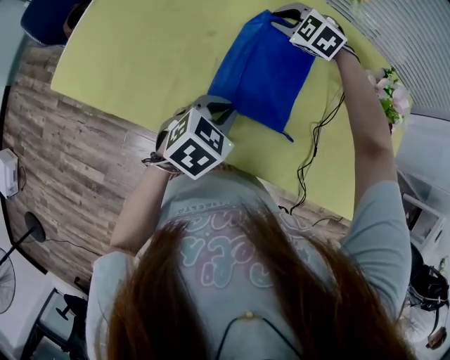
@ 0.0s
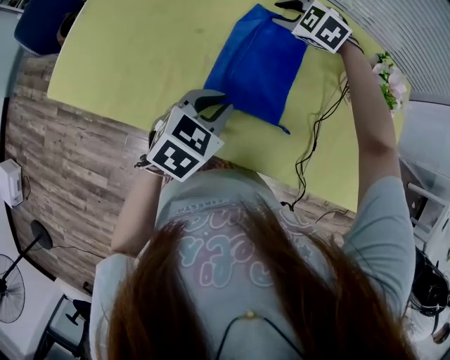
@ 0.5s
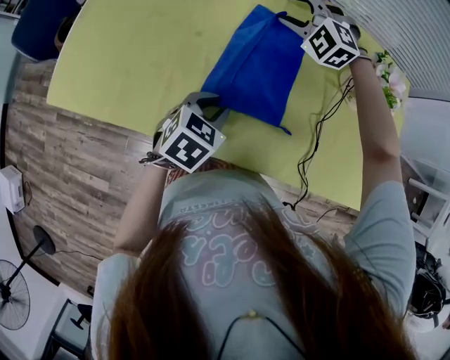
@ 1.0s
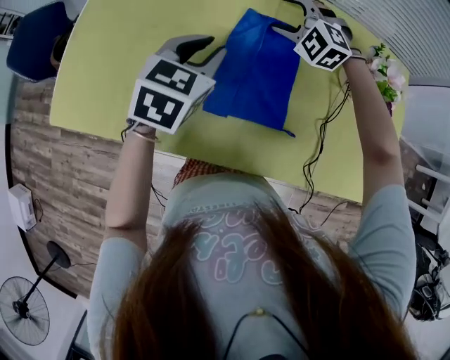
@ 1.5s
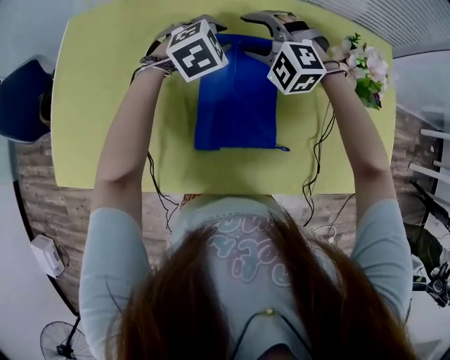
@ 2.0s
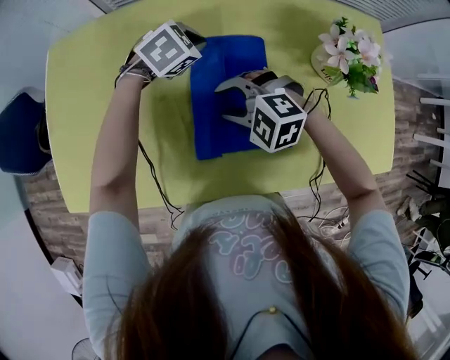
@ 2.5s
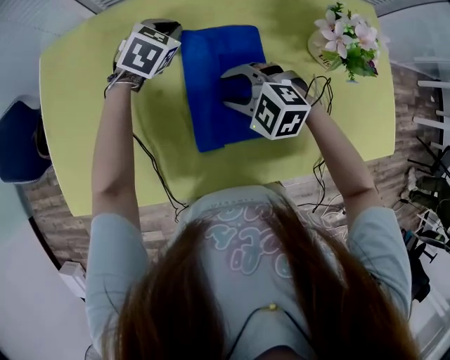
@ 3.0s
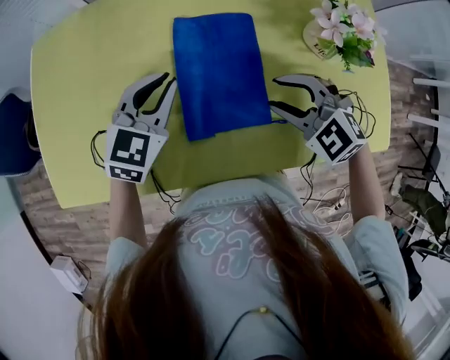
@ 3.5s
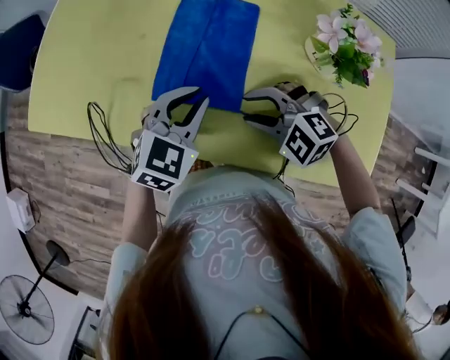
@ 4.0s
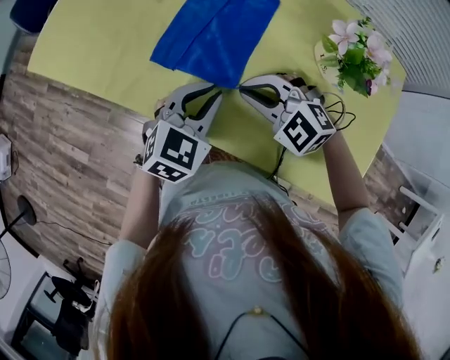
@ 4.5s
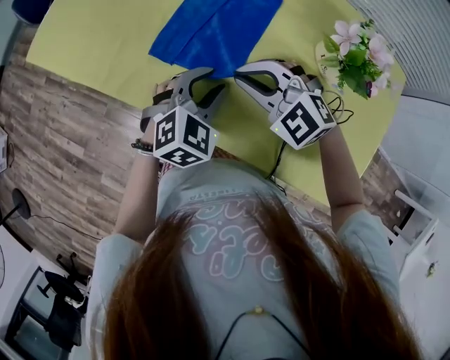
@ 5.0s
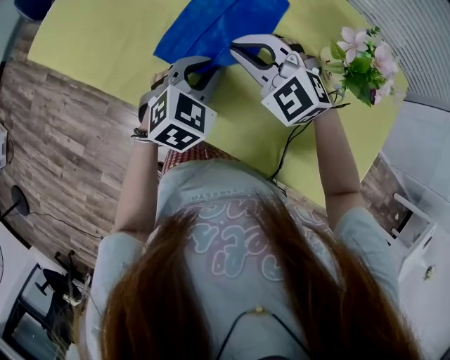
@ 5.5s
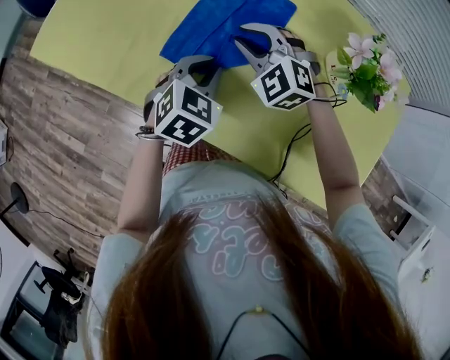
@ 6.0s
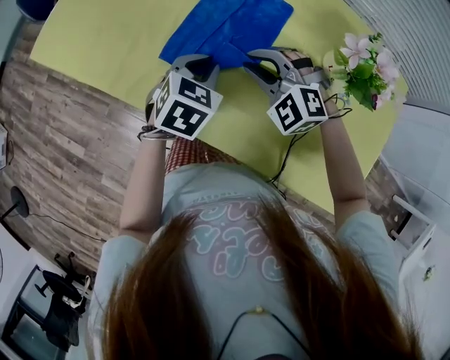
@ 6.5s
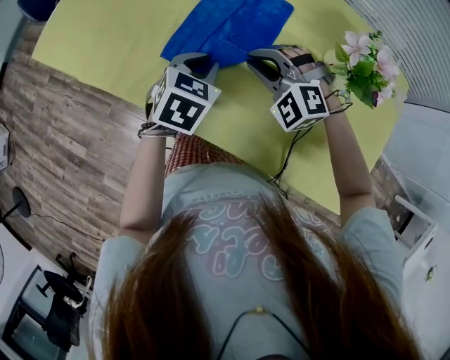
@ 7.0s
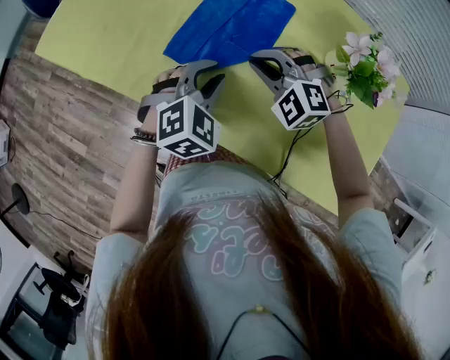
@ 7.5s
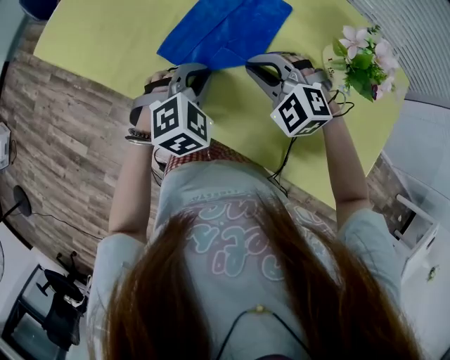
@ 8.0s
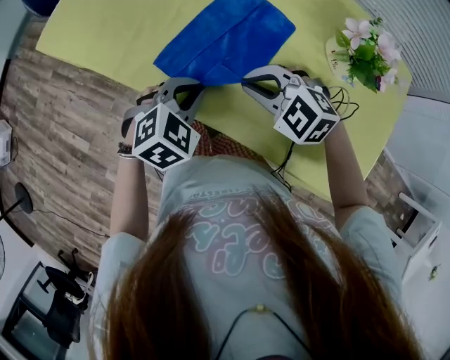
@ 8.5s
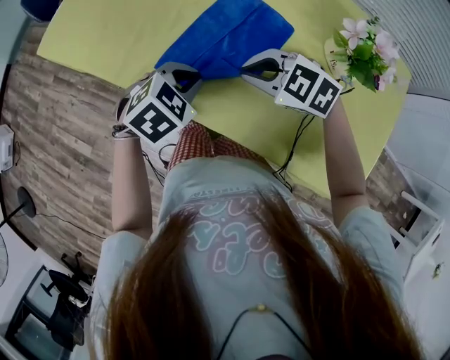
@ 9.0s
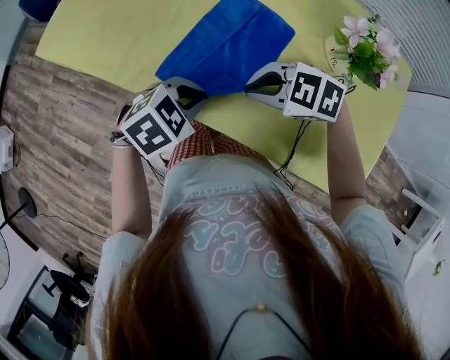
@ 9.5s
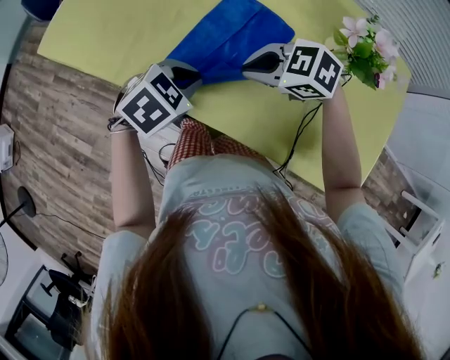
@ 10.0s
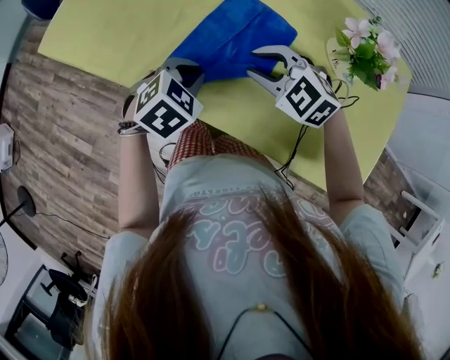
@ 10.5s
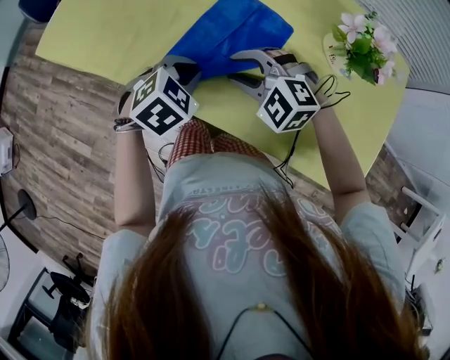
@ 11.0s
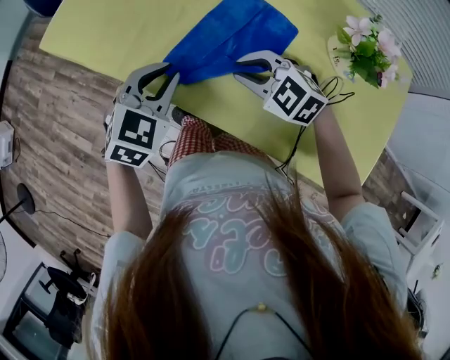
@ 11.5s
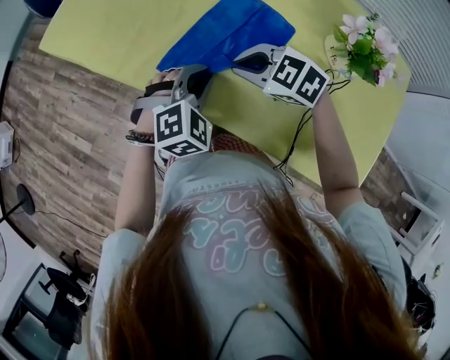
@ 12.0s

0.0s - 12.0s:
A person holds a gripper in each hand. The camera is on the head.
0.0s - 2.0s: The right gripper goes some 5 cm to the right, rotates some 20 degrees, and opens; the left gripper goes some 25 cm forward, rolls clockwise, seen from behind, by approximately 40 degrees, and opens its fingers.
2.0s - 4.0s: The left gripper changes place by about 25 cm, turns by roughly 40 degrees, and closes; the right gripper moves up and down over some 5 cm, changing direction 2 times, rotates some 30 degrees, and closes up.
4.0s - 6.0s: The left gripper heads downward, covering approximately 5 cm, and swivels roughly 20 degrees. The right gripper moves forward, about 15 cm, and swivels about 20 degrees.
6.0s - 8.0s: The left gripper swivels some 20 degrees, while the right gripper shifts about 10 cm backward.
8.0s - 10.0s: The right gripper turns by approximately 40 degrees. Meanwhile the left gripper turns by approximately 30 degrees.
10.0s - 12.0s: The left gripper turns by some 30 degrees; the right gripper opens, then closes once more.

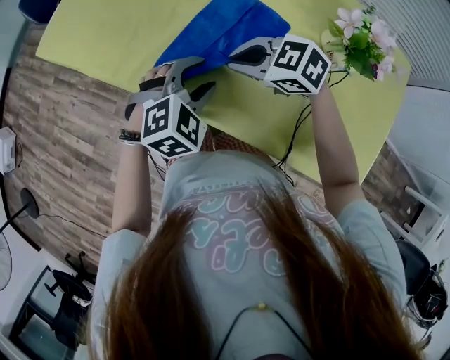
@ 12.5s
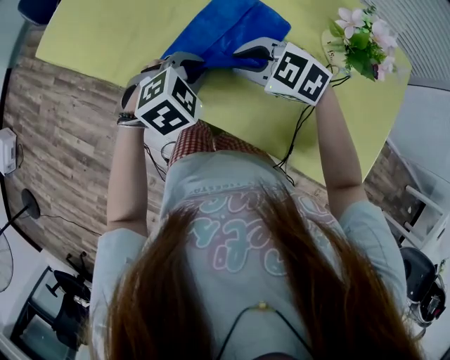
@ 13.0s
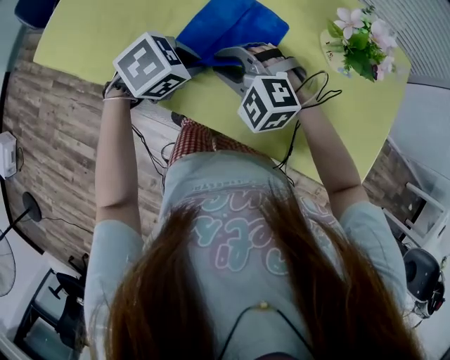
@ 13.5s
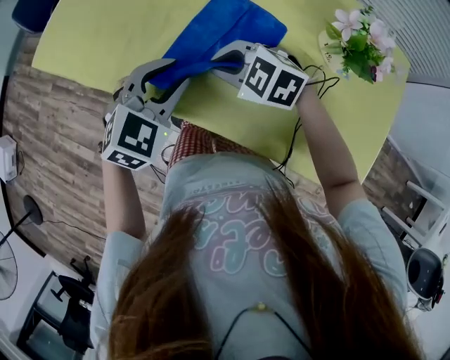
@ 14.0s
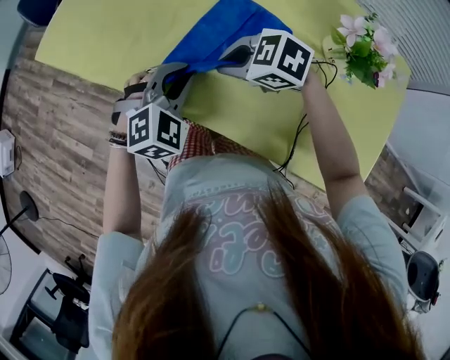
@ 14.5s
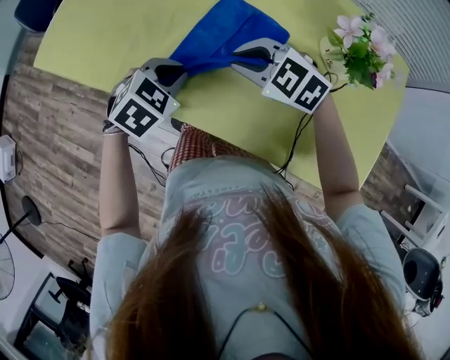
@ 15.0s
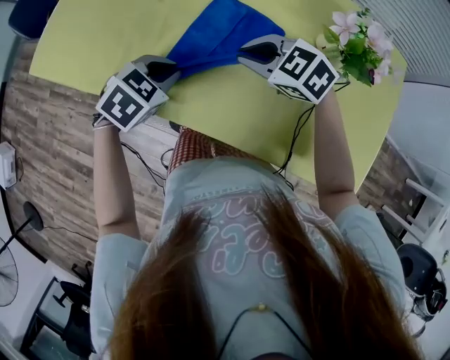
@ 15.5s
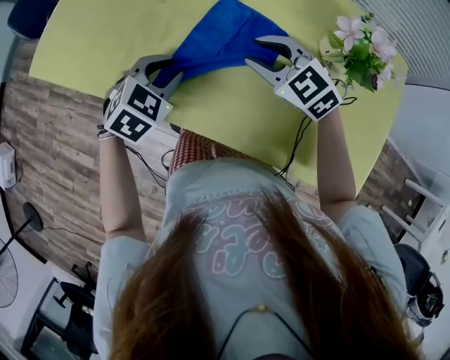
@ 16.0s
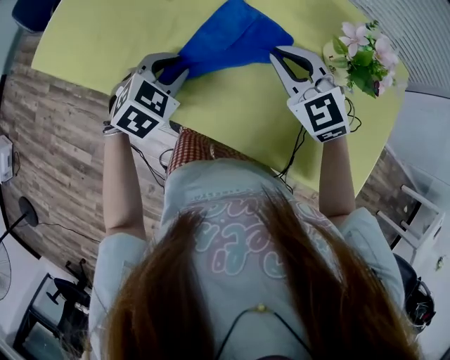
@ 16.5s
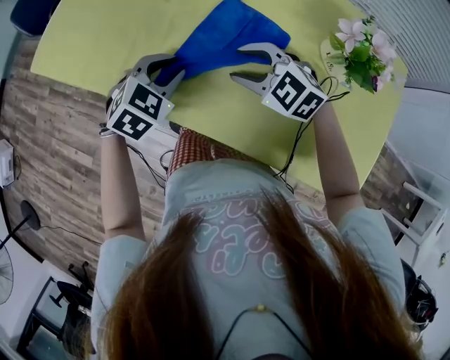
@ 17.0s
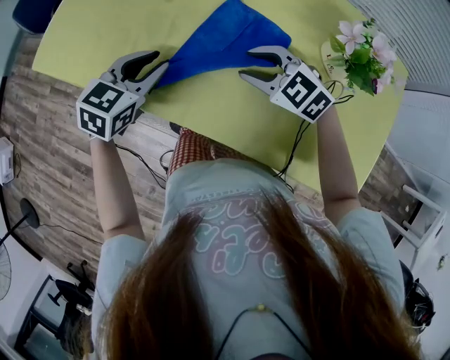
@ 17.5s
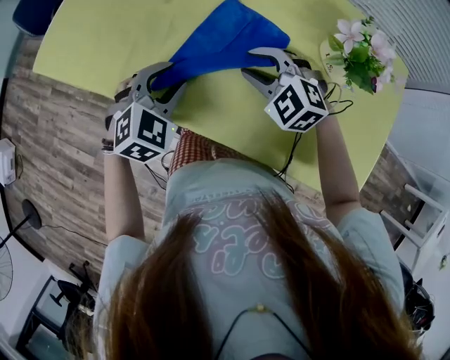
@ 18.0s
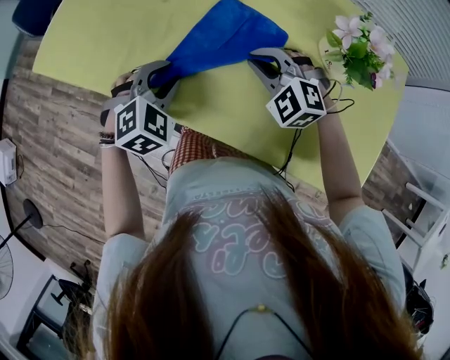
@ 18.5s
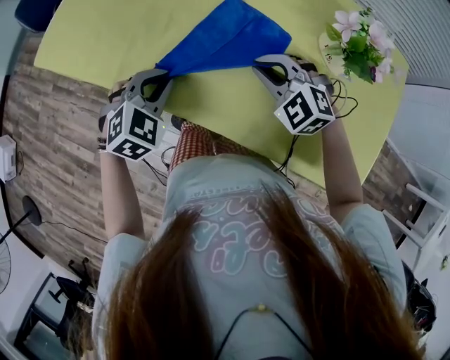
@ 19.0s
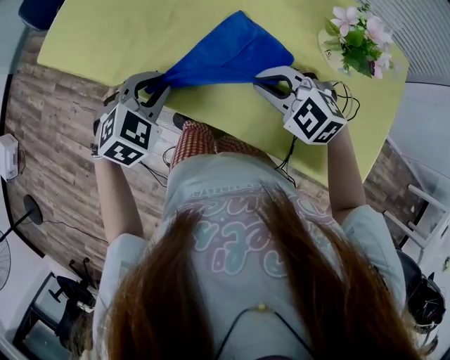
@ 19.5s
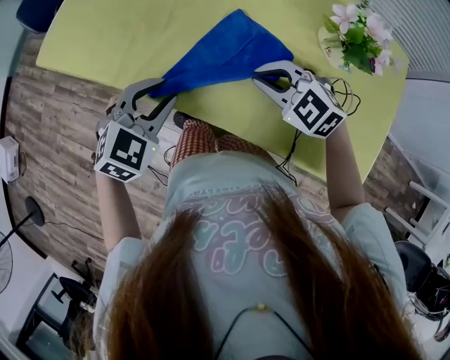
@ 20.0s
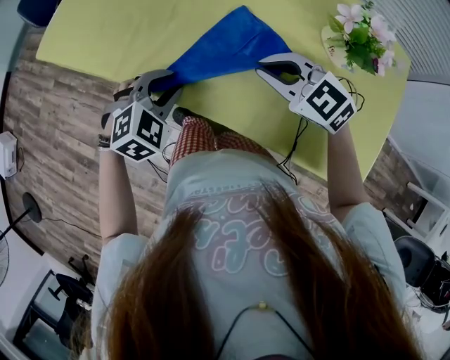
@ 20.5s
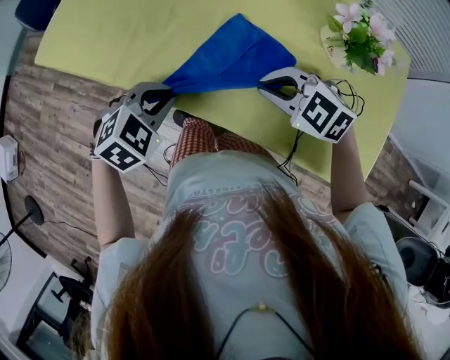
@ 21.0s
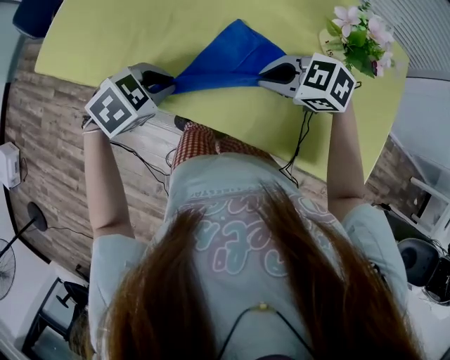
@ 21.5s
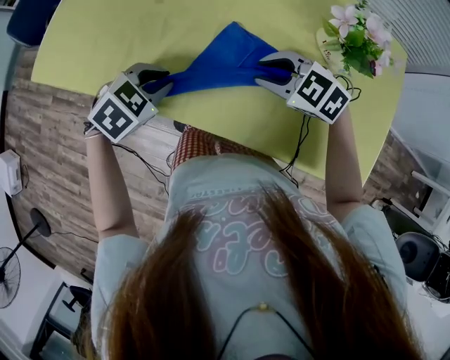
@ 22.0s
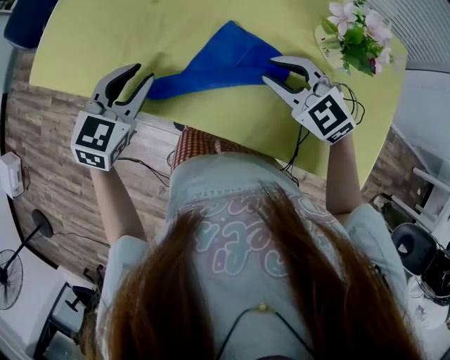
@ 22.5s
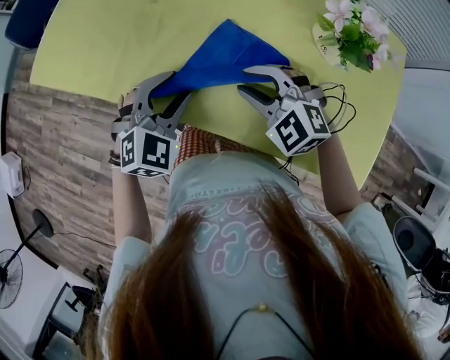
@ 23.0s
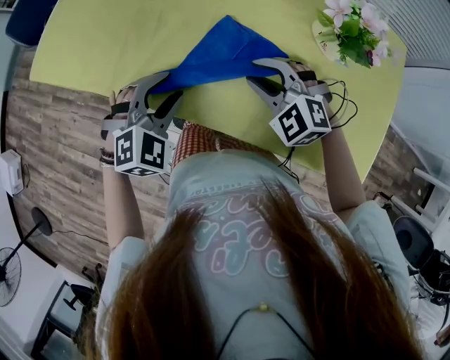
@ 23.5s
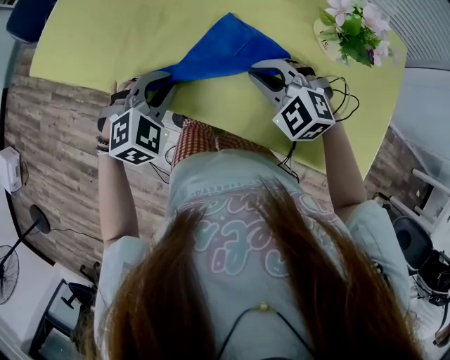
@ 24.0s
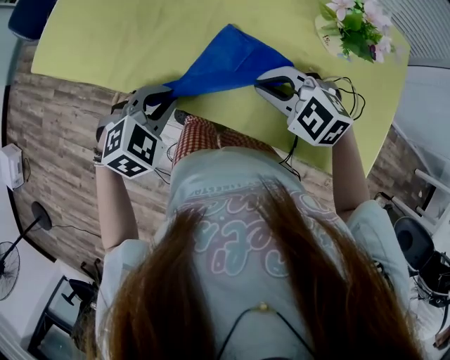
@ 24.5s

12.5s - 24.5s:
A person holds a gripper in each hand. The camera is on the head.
12.5s - 14.5s: The left gripper ends up about 5 cm from where it was, and closes up.
14.5s - 16.5s: The left gripper turns by some 20 degrees; the right gripper ends up about 15 cm from where it was, swivels some 50 degrees, and opens and closes again.
16.5s - 18.5s: The right gripper moves downward, approximately 5 cm, rotates some 30 degrees, and opens, then closes once more.
18.5s - 20.5s: Both grippers move backward, about 5 cm. The right gripper rotates some 30 degrees.
20.5s - 22.5s: The left gripper moves some 10 cm, and changes its angle by roughly 30 degrees.
22.5s - 24.5s: The left gripper heads backward and downward, covering about 10 cm, and swivels approximately 30 degrees. The right gripper shifts some 5 cm backward.

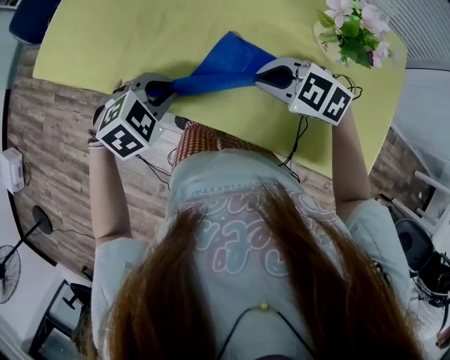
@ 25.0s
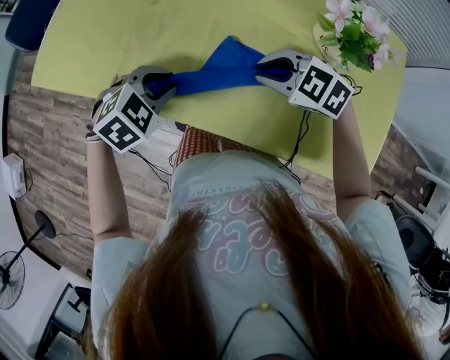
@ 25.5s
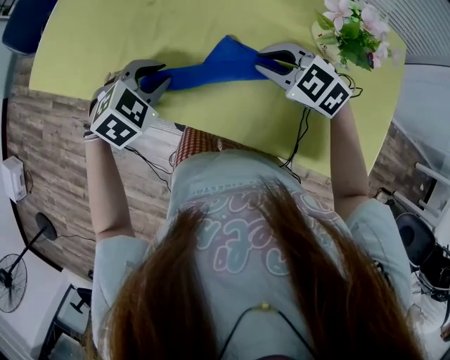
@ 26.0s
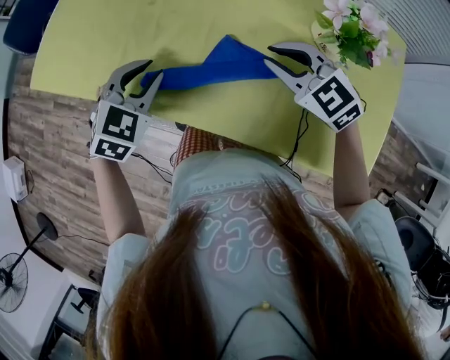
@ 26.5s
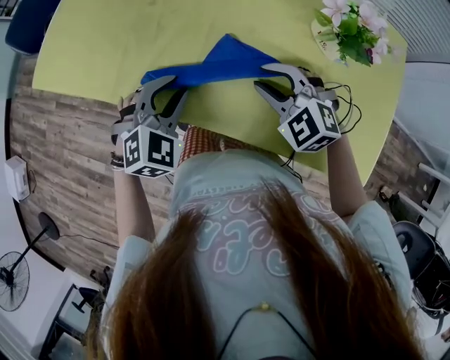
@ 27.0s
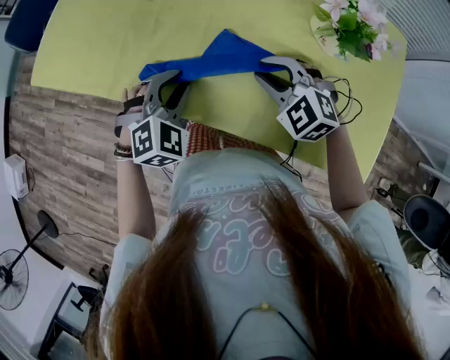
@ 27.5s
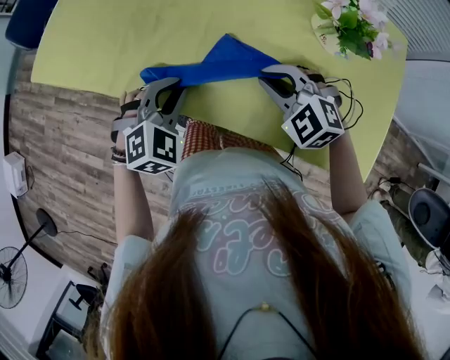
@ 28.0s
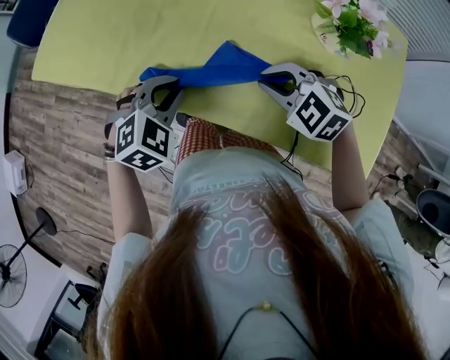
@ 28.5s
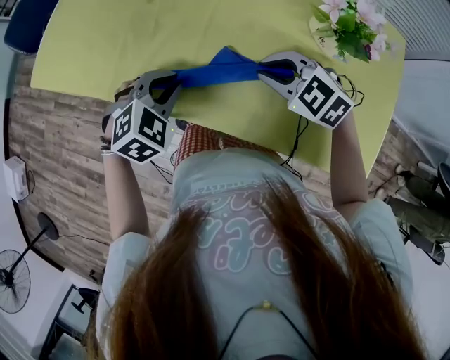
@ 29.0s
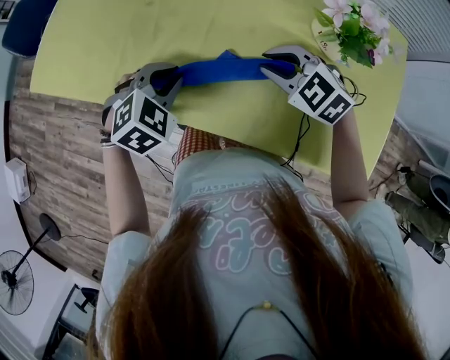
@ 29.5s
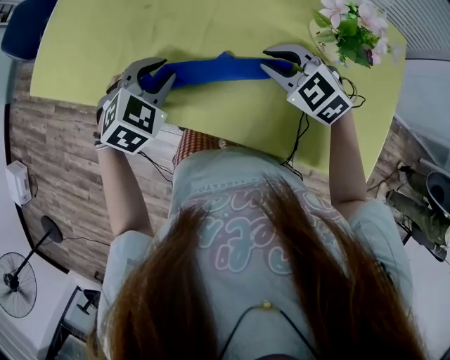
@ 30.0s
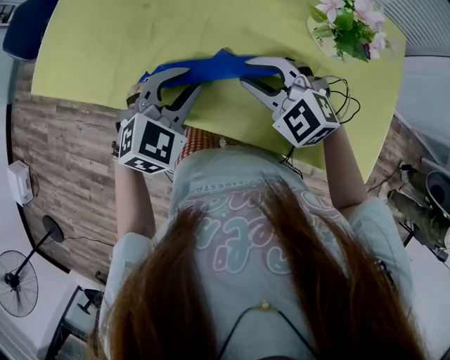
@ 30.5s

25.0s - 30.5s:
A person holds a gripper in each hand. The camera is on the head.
25.0s - 27.0s: The right gripper turns by approximately 30 degrees, and opens up. The left gripper swivels about 20 degrees.
27.0s - 28.5s: The grippers make only small movements.
28.5s - 30.5s: The left gripper moves approximately 5 cm, while the right gripper ends up some 5 cm from where it was.
